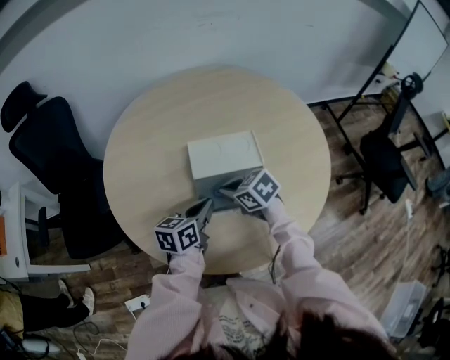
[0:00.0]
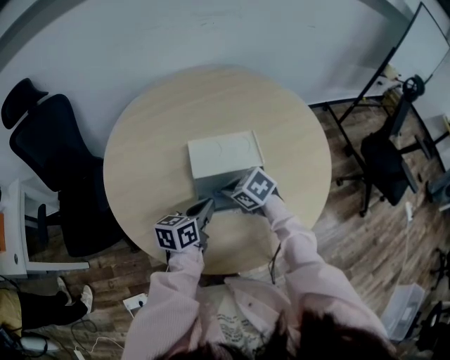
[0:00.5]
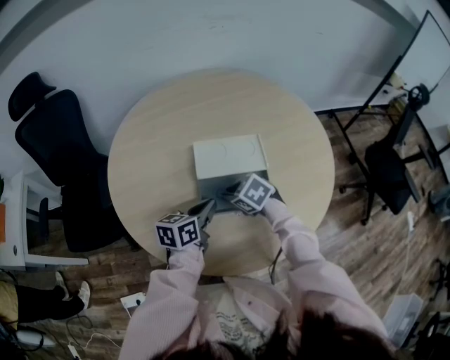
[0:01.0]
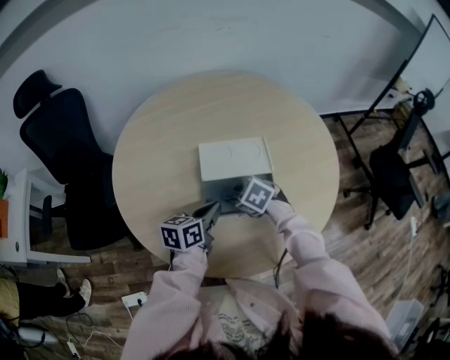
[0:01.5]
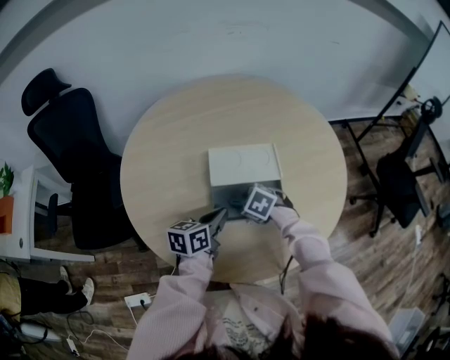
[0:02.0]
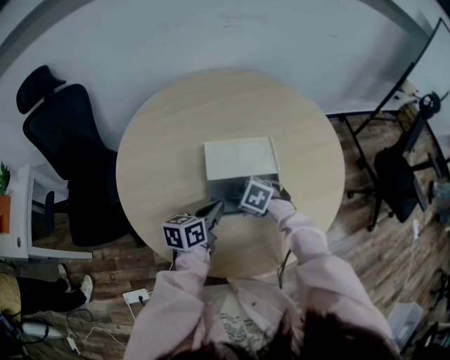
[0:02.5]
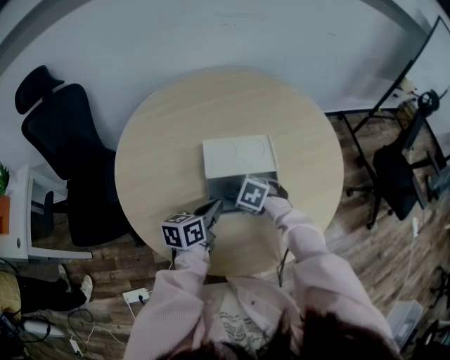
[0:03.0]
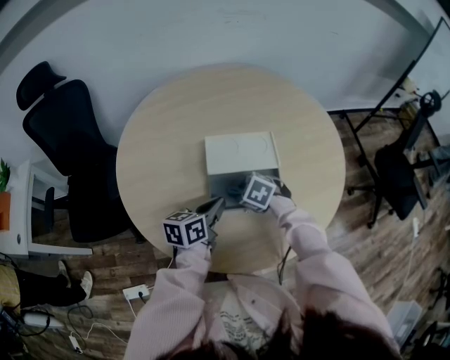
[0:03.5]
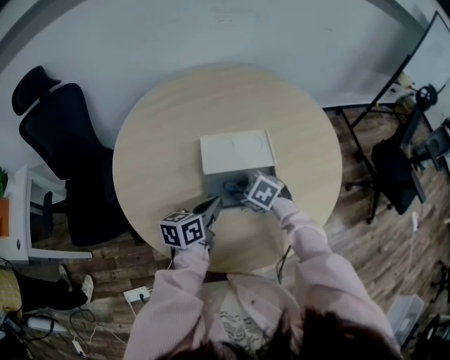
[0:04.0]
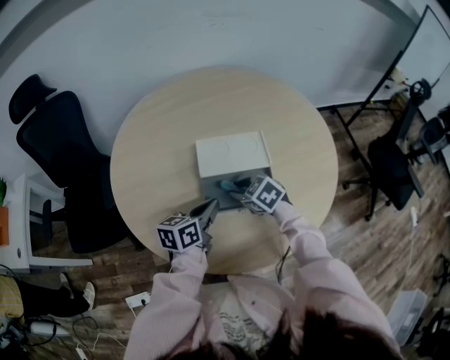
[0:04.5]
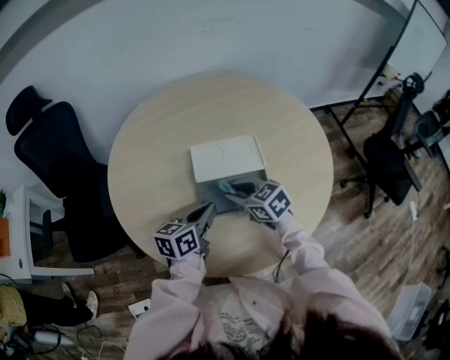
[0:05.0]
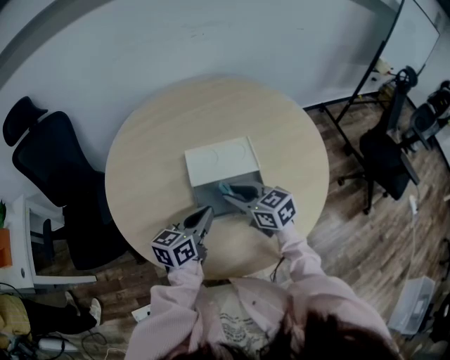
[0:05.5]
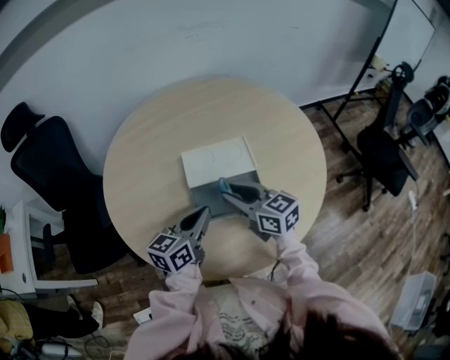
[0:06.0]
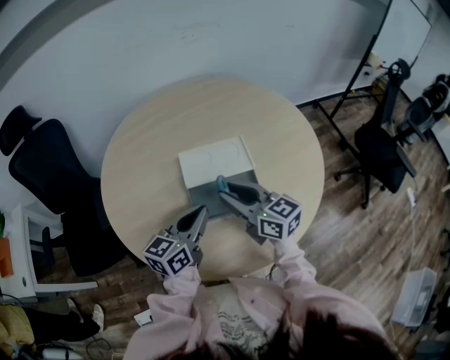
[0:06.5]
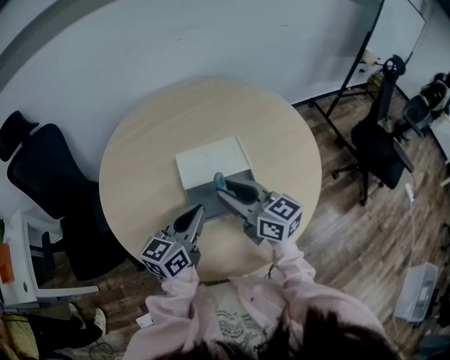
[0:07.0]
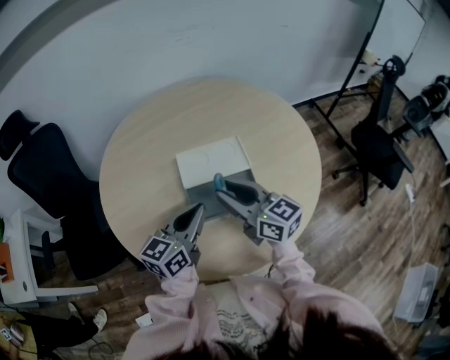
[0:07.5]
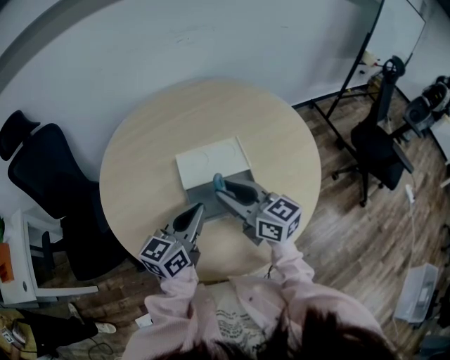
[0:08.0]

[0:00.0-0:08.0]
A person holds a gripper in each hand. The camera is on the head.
0:00.0 to 0:02.0: The right gripper goes approximately 5 cm downward, swivels some 30 degrees, and opens.
0:02.0 to 0:04.0: The grippers move only a little.
0:04.0 to 0:06.0: The left gripper heads upward, covering about 5 cm; the right gripper is displaced upward by about 15 cm, and angles its fingers upward, by approximately 50 degrees.
0:06.0 to 0:08.0: The right gripper shifts about 5 cm upward.

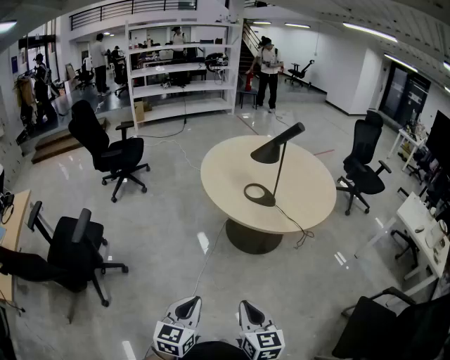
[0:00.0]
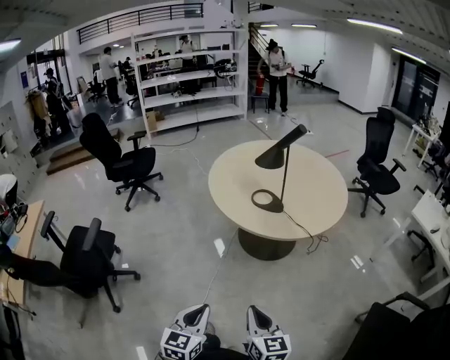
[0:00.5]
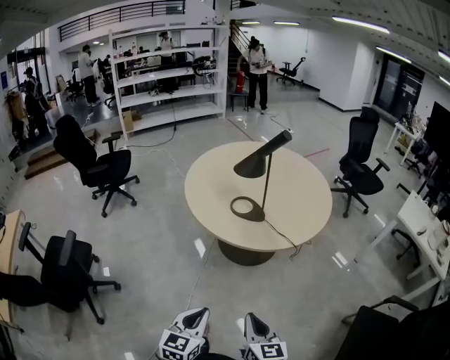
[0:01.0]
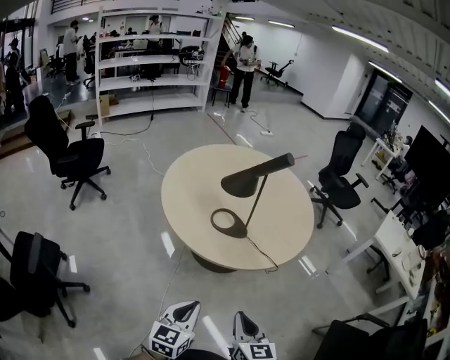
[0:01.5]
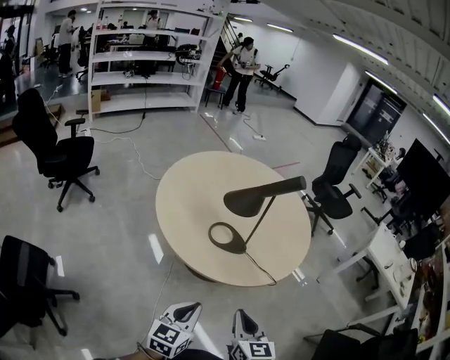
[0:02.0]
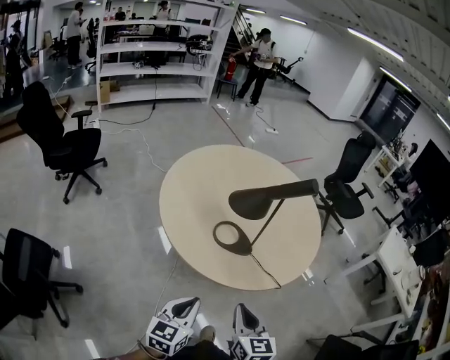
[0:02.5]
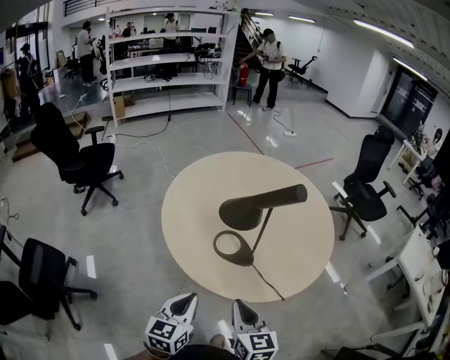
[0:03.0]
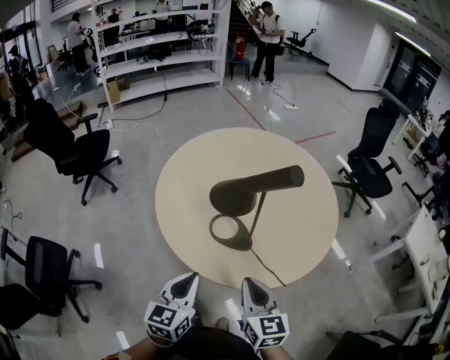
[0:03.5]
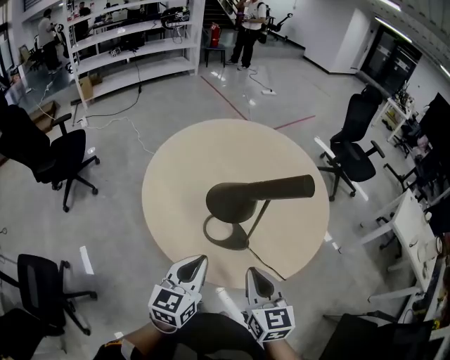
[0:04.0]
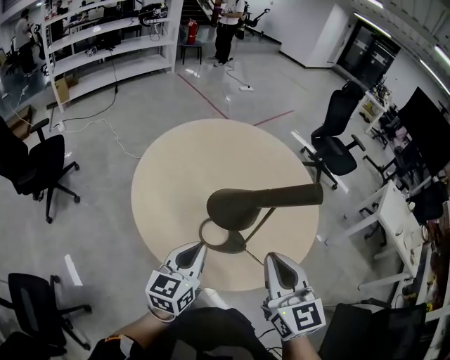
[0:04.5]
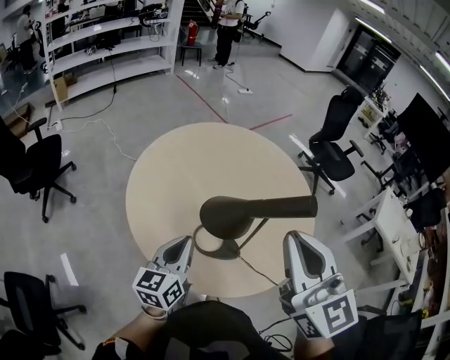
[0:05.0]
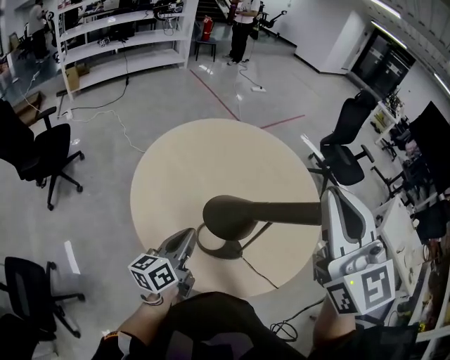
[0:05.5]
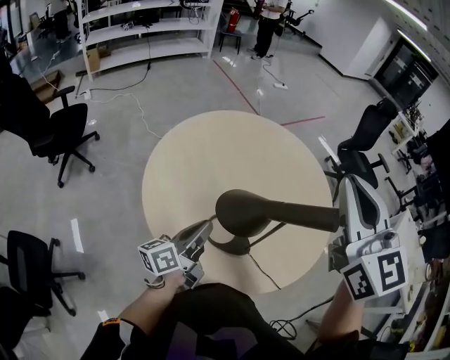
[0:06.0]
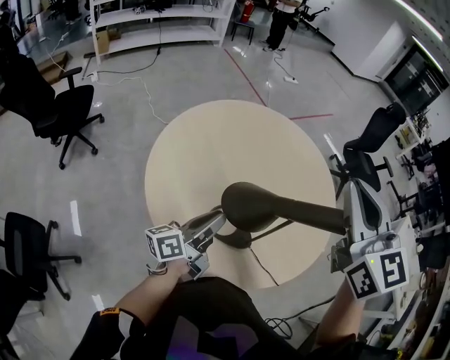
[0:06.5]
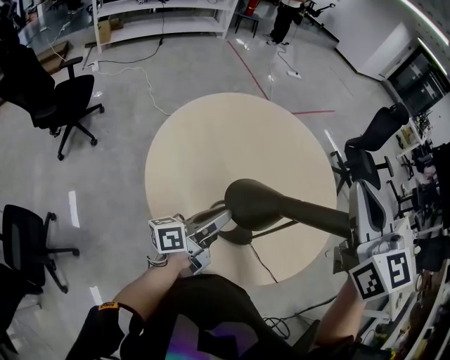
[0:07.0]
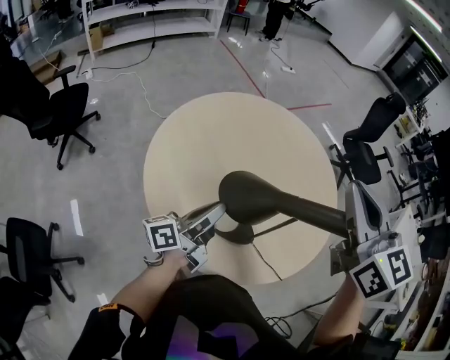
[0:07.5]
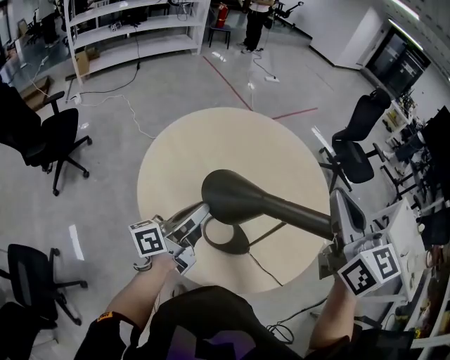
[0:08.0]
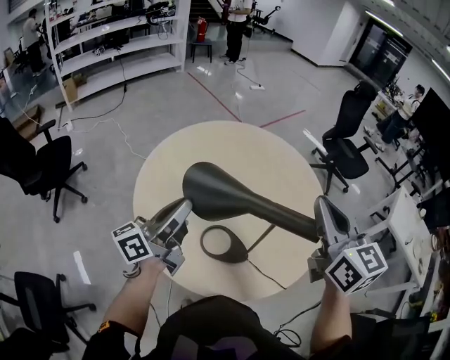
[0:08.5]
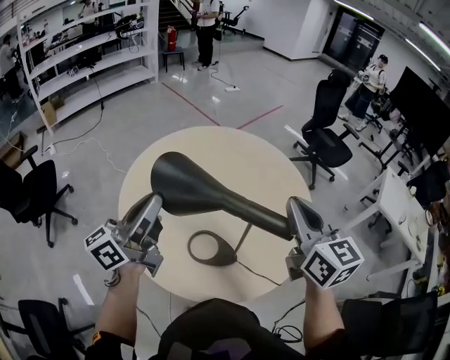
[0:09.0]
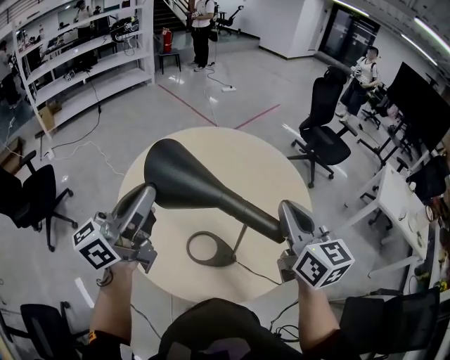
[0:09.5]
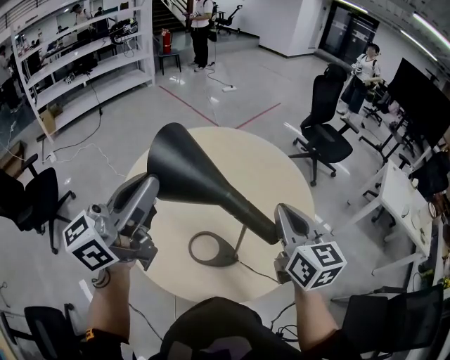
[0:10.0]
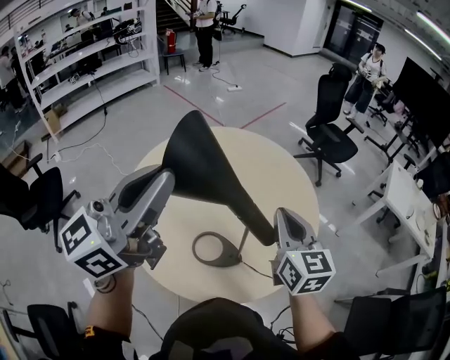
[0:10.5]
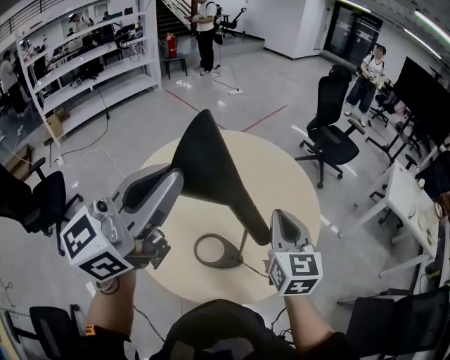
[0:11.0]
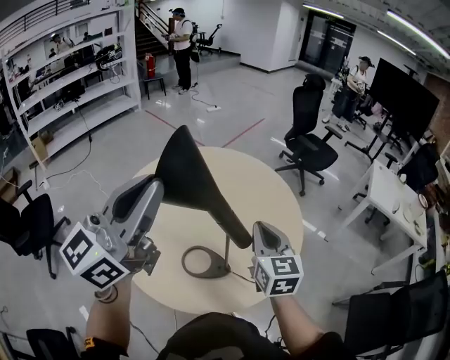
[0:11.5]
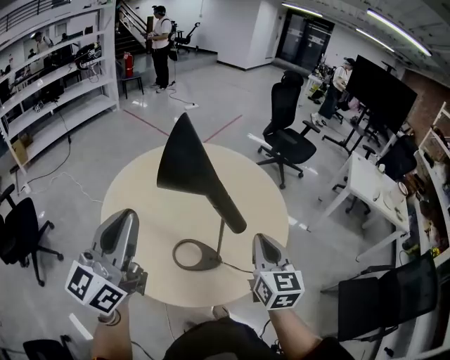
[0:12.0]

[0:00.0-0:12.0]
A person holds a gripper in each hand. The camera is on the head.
0:00.0 to 0:02.0: Both grippers travel together forward, about 35 cm. The left gripper turns by some 20 degrees.
0:02.0 to 0:04.0: Both grippers travel together forward, roughly 25 cm.
0:04.0 to 0:06.0: The right gripper shifts approximately 35 cm upward and forward, and swivels approximately 30 degrees, while the left gripper goes about 15 cm forward, and twists some 40 degrees counterclockwise, seen from behind.
0:06.0 to 0:08.0: The left gripper shifts about 5 cm upward. The right gripper travels downward by some 5 cm.
0:08.0 to 0:10.0: The right gripper travels downward and to the right by approximately 10 cm; the left gripper heads upward, covering roughly 25 cm, and turns by approximately 40 degrees.
0:10.0 to 0:12.0: The grippers both shift backward by some 10 cm.

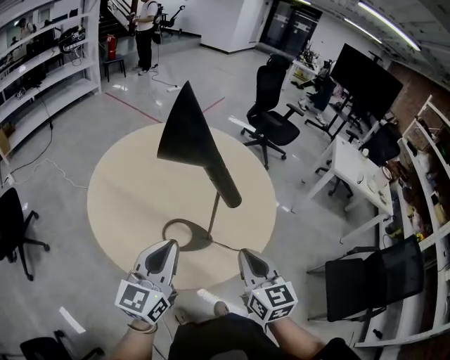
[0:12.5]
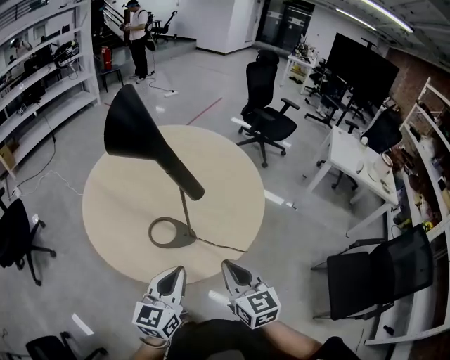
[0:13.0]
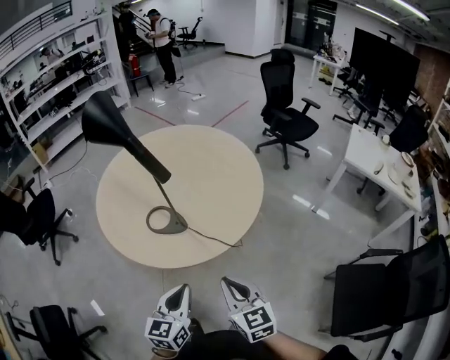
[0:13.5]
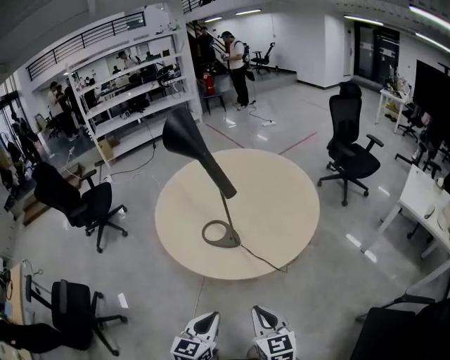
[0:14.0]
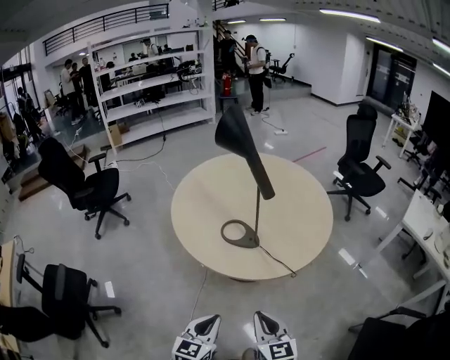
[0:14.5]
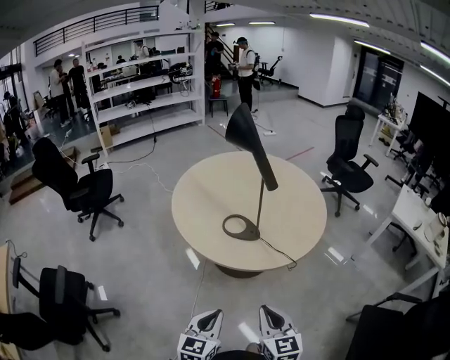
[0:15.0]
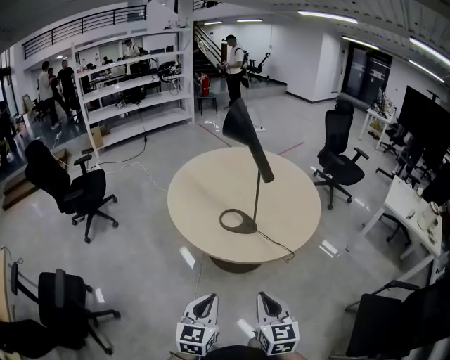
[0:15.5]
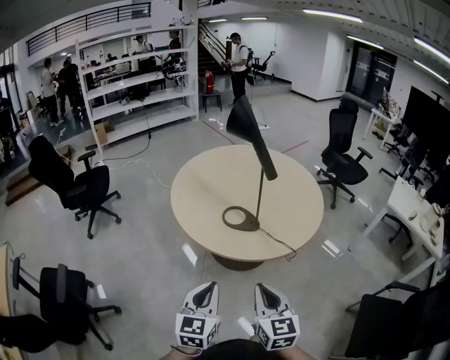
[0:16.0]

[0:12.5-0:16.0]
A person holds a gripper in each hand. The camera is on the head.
0:12.5 to 0:14.5: The left gripper shifts by approximately 40 cm, and rotates approximately 30 degrees, while the right gripper changes place by some 30 cm, and changes its angle by roughly 30 degrees.
0:14.5 to 0:16.0: The grippers both shift to the left and upward by some 10 cm.

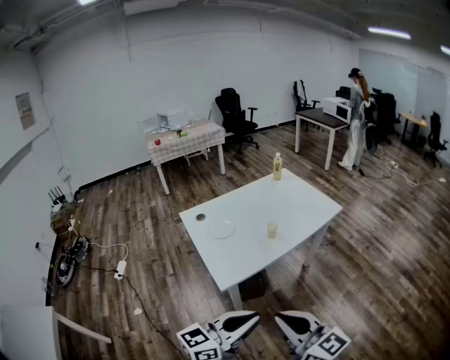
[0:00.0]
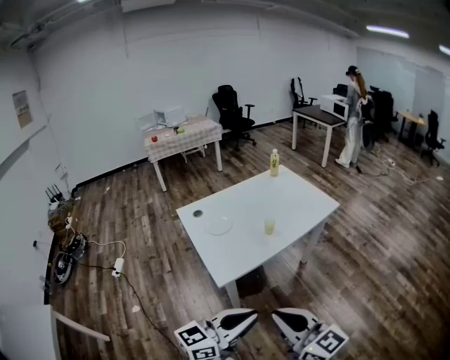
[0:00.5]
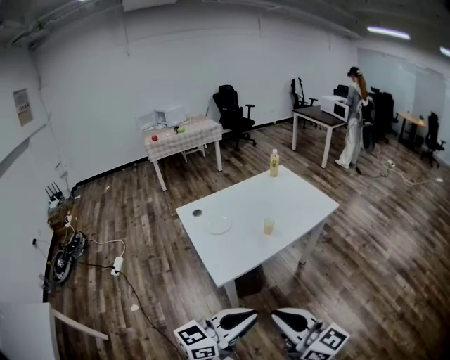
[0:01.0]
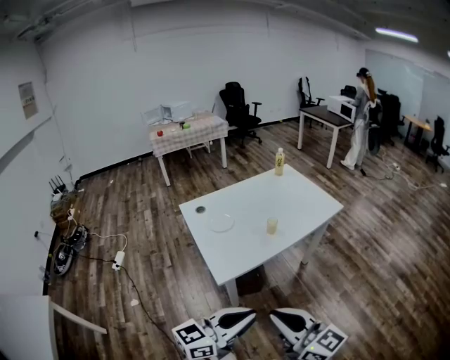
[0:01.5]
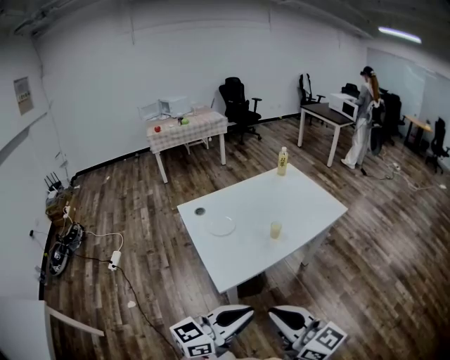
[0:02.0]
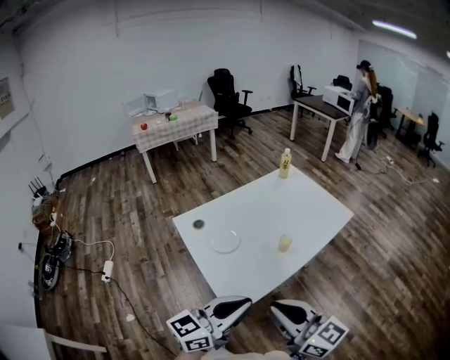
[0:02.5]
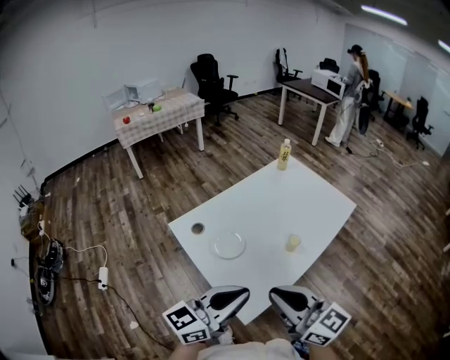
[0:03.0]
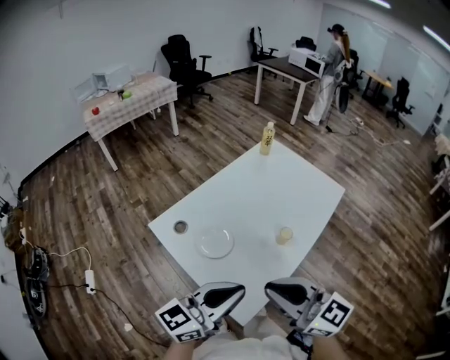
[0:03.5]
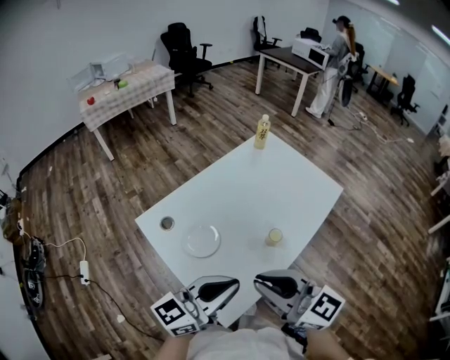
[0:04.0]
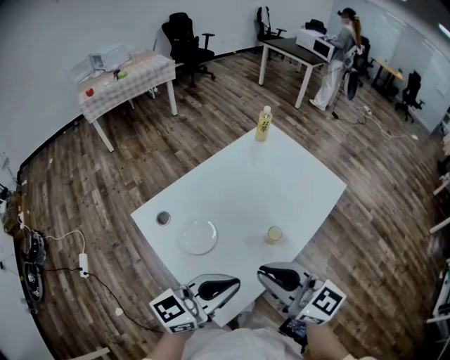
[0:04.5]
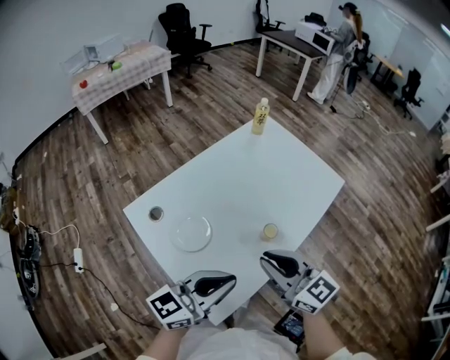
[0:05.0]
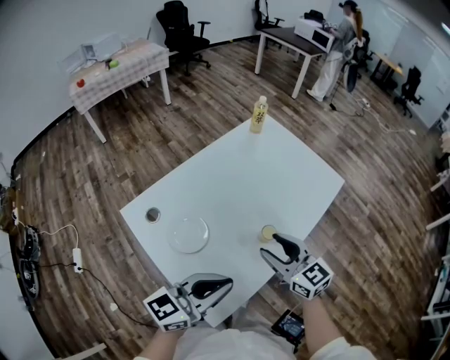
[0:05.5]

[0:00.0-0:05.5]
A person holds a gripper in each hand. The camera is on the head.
0:00.0 to 0:02.0: The left gripper moves about 5 cm. The right gripper changes place by roughly 5 cm.
0:02.0 to 0:03.5: Both grippers move forward and to the left, approximately 30 cm.
0:03.5 to 0:05.5: The left gripper is displaced forward, to the right and downward by about 10 cm. The right gripper shifts approximately 25 cm forward, downward and to the right, and opens up.
